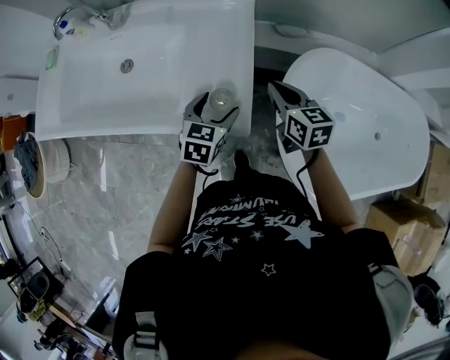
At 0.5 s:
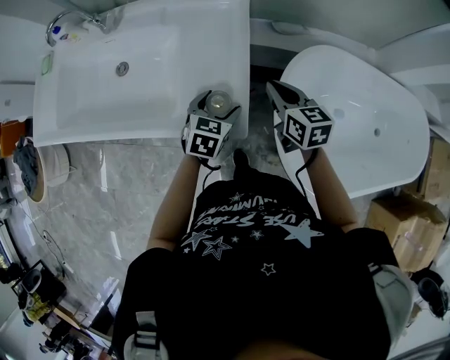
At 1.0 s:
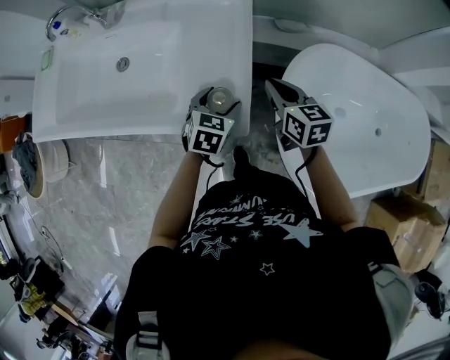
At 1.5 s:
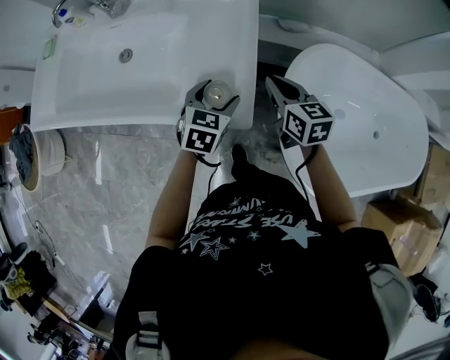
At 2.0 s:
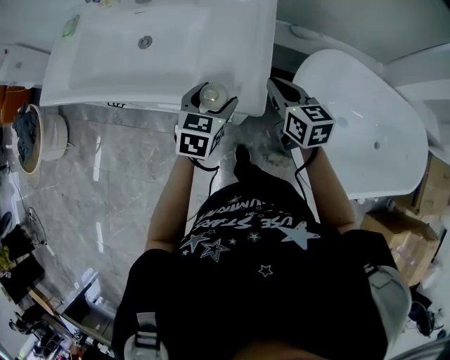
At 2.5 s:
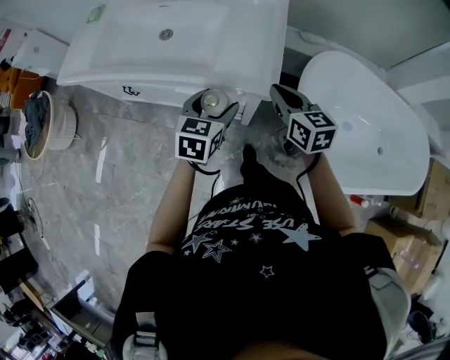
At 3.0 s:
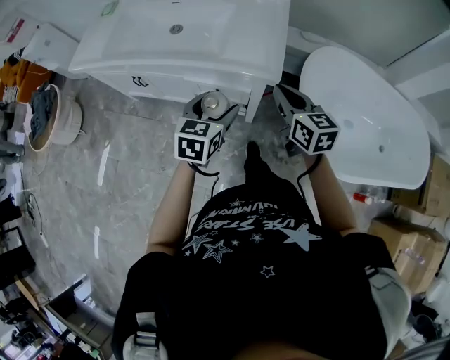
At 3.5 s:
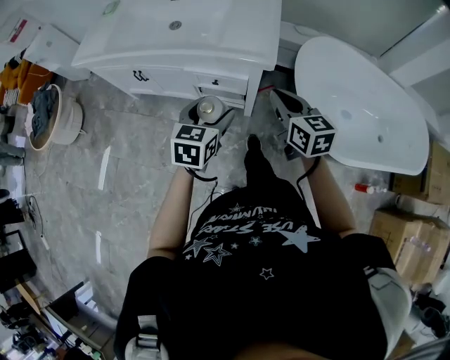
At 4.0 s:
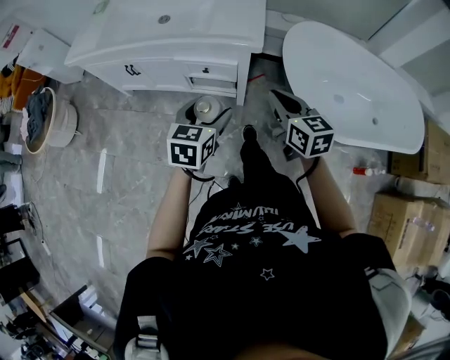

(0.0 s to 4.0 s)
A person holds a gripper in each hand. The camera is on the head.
0.0 s - 2.0 s: Both grippers travel together backward and to the left, some 10 cm.
2.0 s - 4.0 s: The two grippers go approximately 35 cm backward.

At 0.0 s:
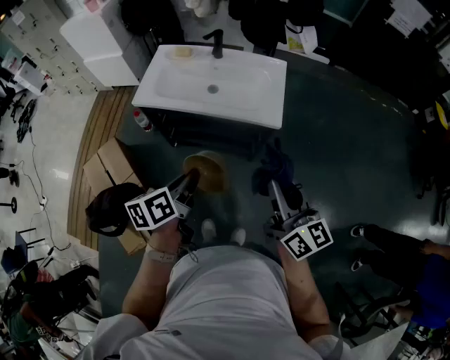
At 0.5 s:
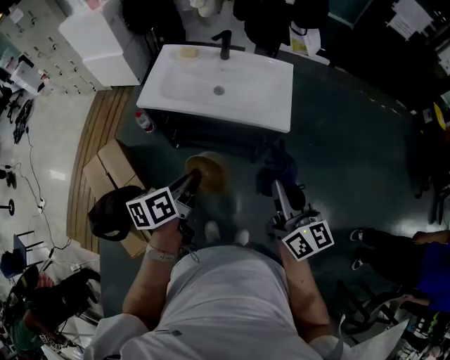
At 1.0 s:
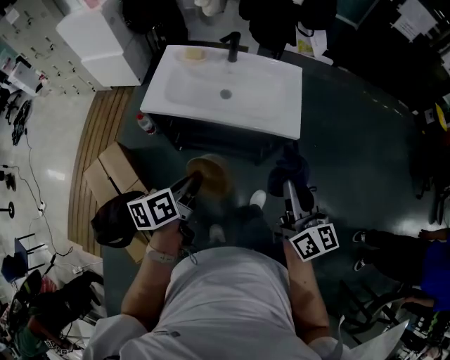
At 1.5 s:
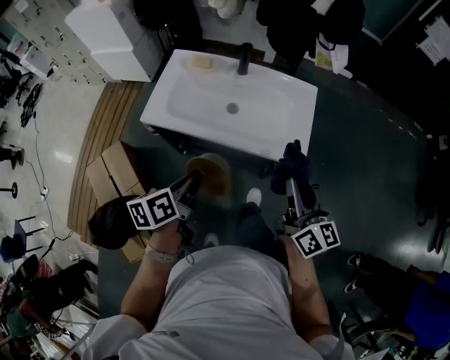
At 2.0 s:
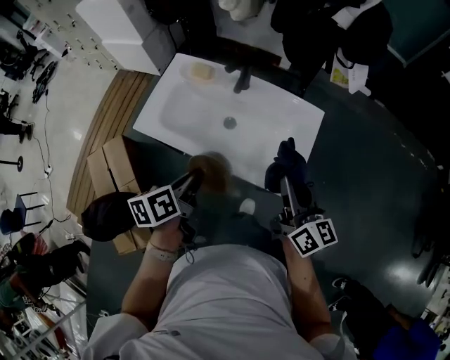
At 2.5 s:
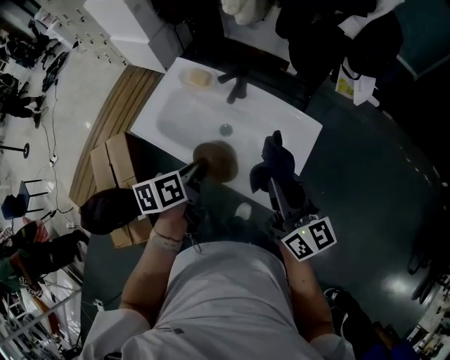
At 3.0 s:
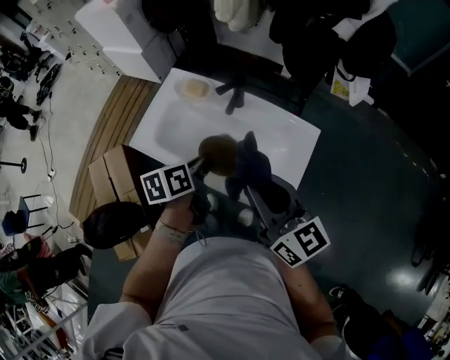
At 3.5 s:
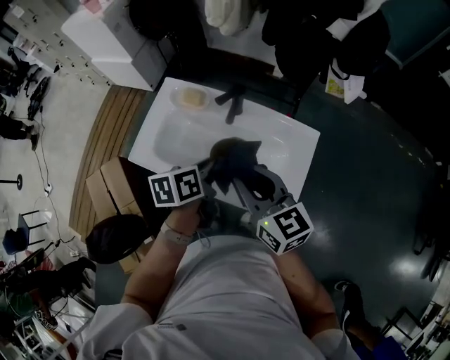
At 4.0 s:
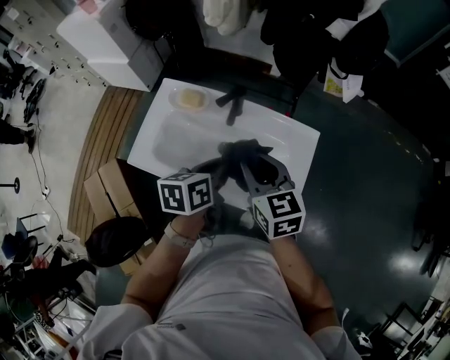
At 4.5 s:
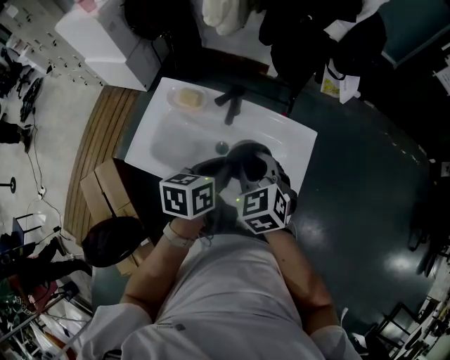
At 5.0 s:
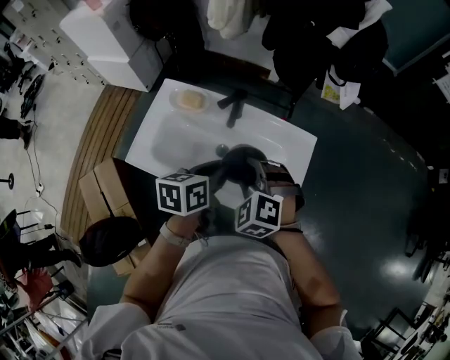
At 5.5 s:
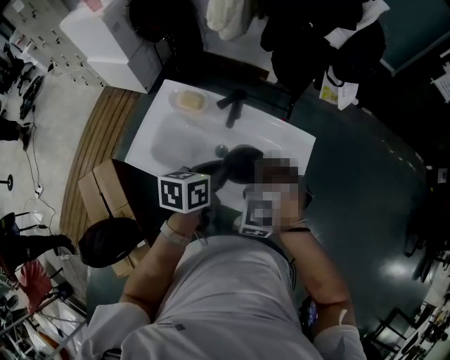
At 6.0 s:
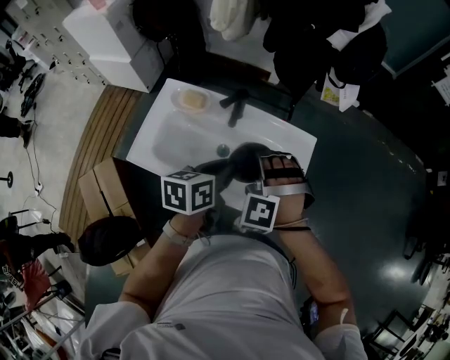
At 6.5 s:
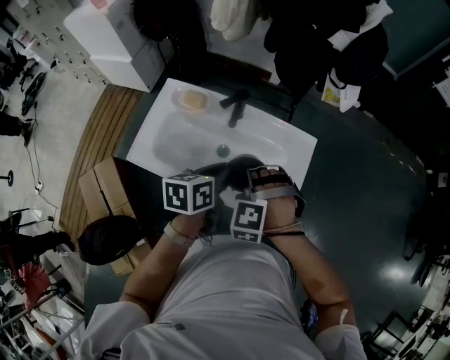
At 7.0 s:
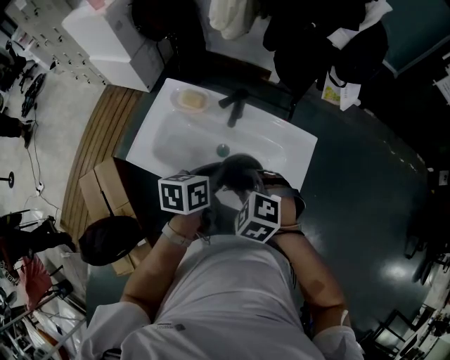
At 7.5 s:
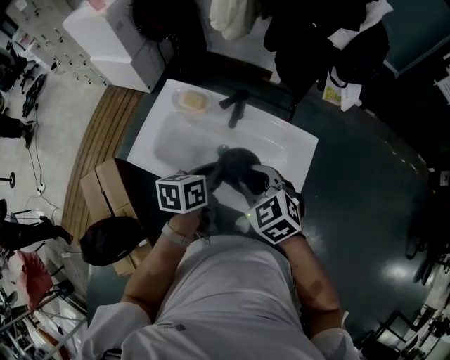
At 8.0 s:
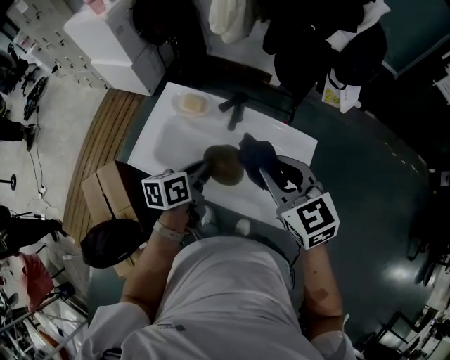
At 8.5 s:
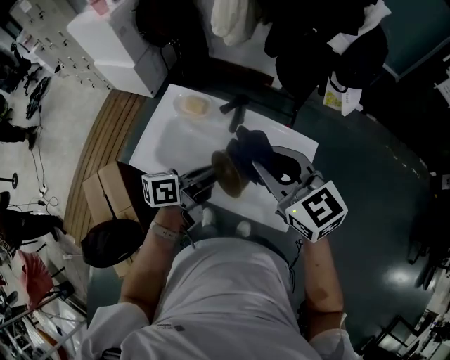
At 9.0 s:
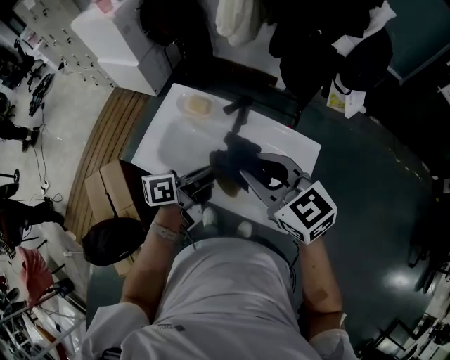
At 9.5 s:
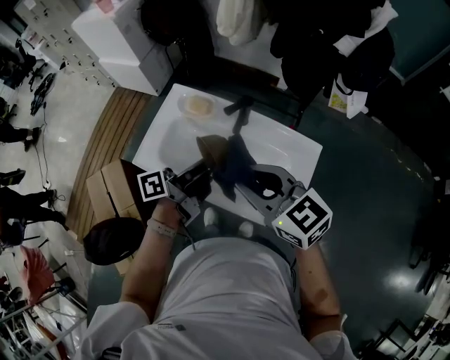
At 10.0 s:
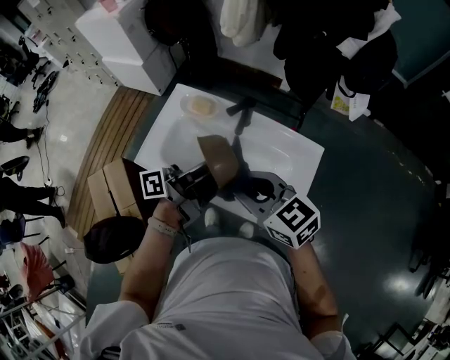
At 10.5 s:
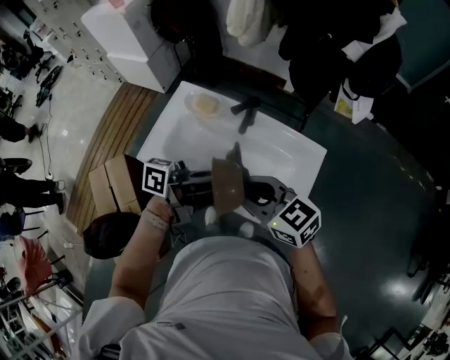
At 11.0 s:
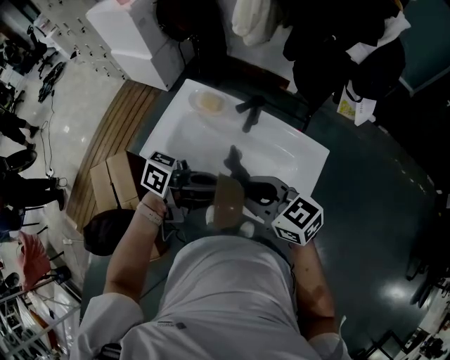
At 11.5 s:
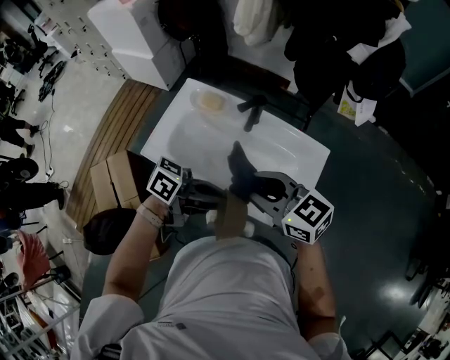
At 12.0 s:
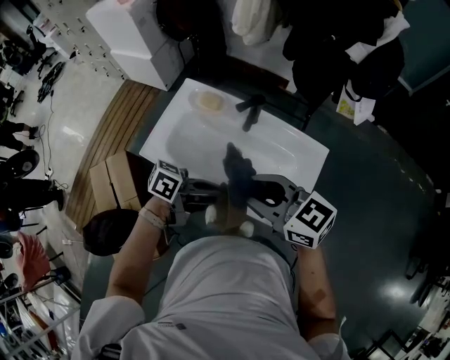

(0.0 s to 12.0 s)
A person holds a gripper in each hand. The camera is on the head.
0.0 s - 2.0 s: The two grippers go roughly 30 cm forward.
2.0 s - 4.0 s: The right gripper is displaced forward and to the left by approximately 15 cm, and swivels some 30 degrees. The left gripper shifts some 15 cm forward and to the right.
4.0 s - 6.0 s: The right gripper twists some 80 degrees counterclockwise, seen from behind.
6.0 s - 8.0 s: The right gripper moves upward, approximately 10 cm, and rotates around the line of its fingers by approximately 60 degrees, clockwise from behind. Meanwhile the left gripper is displaced to the left by some 5 cm.
8.0 s - 10.0 s: The left gripper travels upward by roughly 10 cm, and angles its fingers upward, by approximately 40 degrees. The right gripper travels to the left by roughly 5 cm, and turns by roughly 20 degrees.
10.0 s - 12.0 s: The left gripper changes place by roughly 10 cm, and changes its angle by roughly 40 degrees.

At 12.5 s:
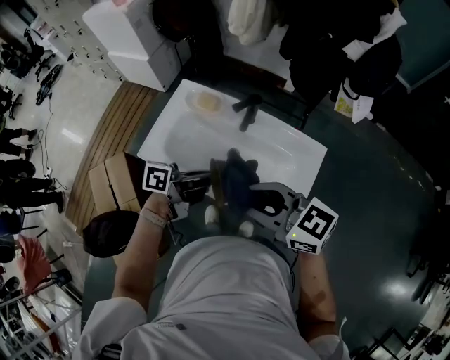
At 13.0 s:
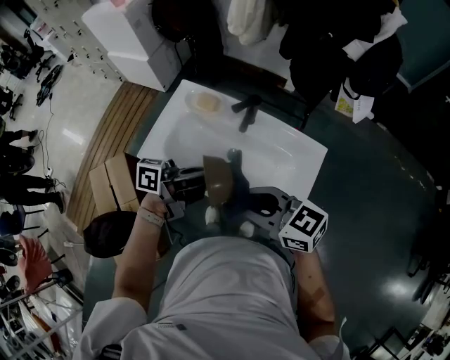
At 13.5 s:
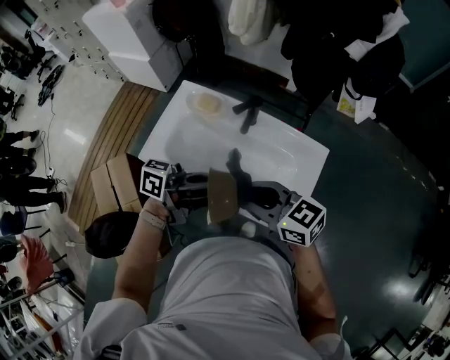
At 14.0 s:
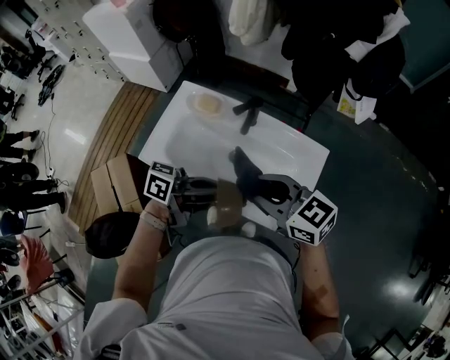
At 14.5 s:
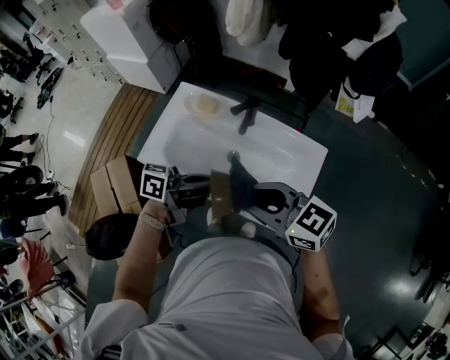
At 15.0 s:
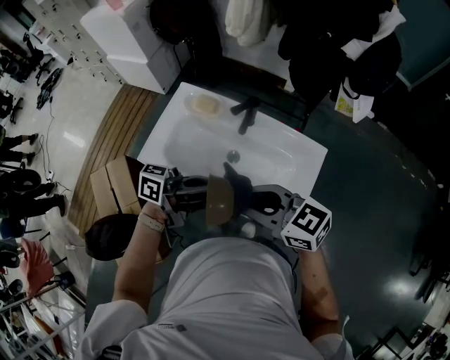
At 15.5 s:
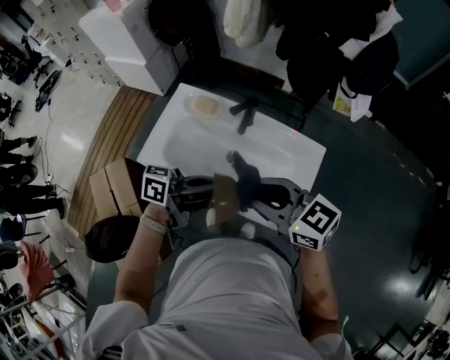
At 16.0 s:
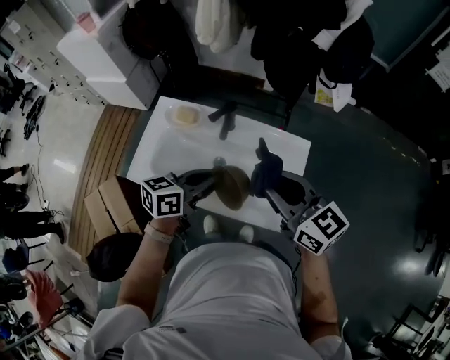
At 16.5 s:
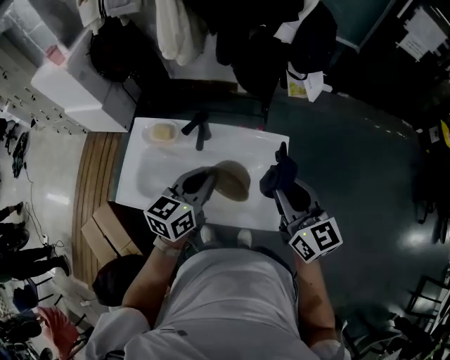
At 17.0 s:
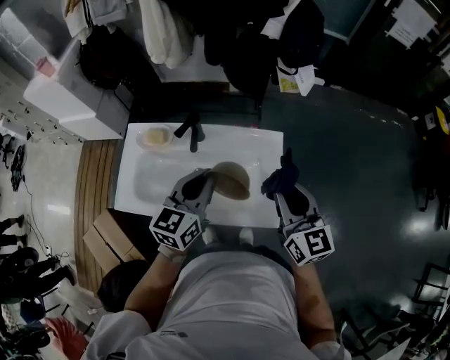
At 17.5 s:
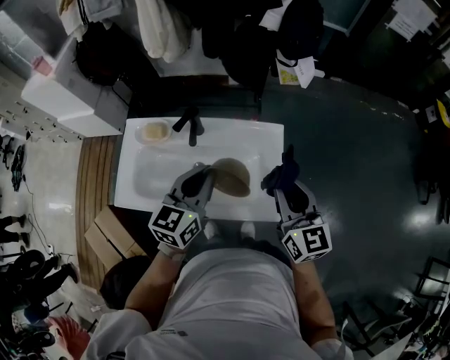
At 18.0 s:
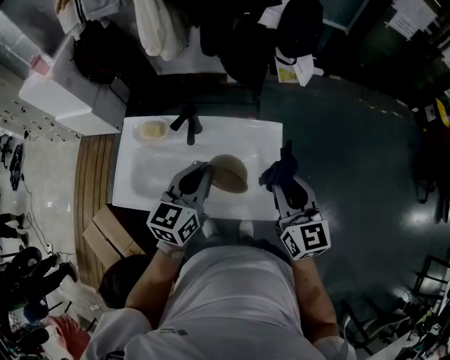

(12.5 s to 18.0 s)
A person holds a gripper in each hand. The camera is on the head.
14.5 s - 16.0 s: The right gripper changes place by roughly 10 cm, and turns by about 30 degrees; the left gripper changes place by approximately 5 cm, and turns by approximately 30 degrees.
16.0 s - 18.0 s: The left gripper changes place by about 5 cm, and turns by about 30 degrees. Meanwhile the right gripper travels to the right by roughly 10 cm, and changes its angle by roughly 40 degrees.

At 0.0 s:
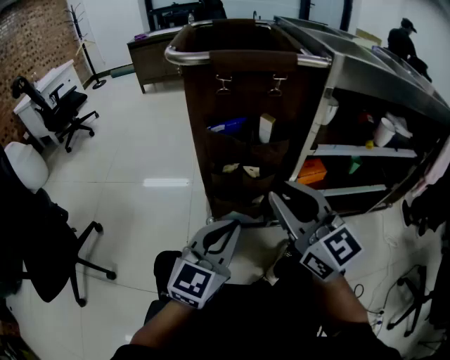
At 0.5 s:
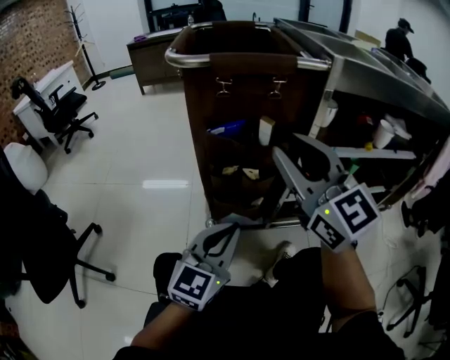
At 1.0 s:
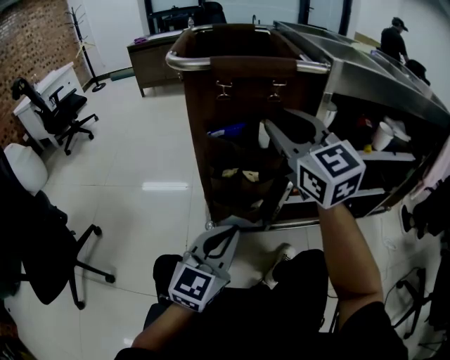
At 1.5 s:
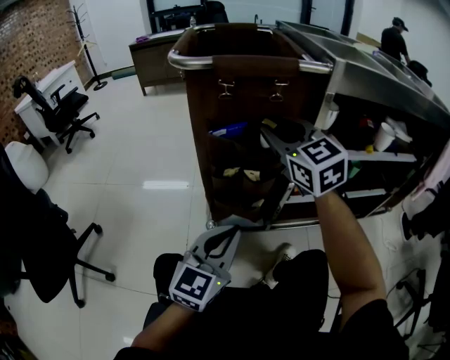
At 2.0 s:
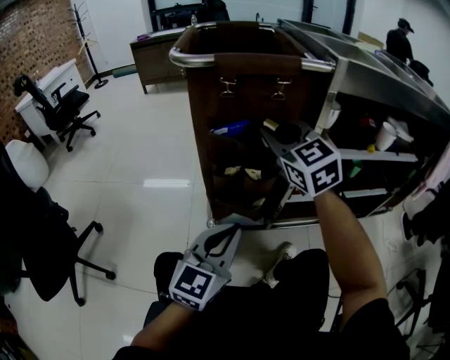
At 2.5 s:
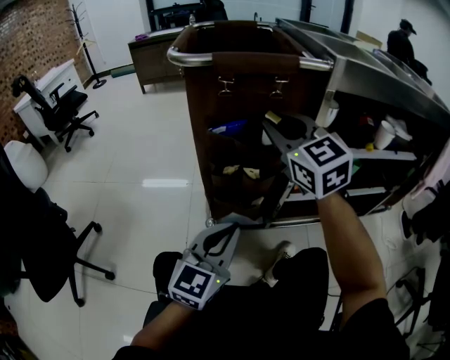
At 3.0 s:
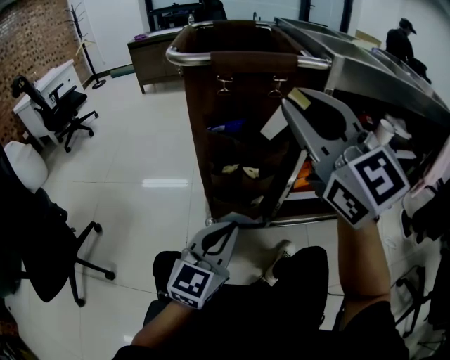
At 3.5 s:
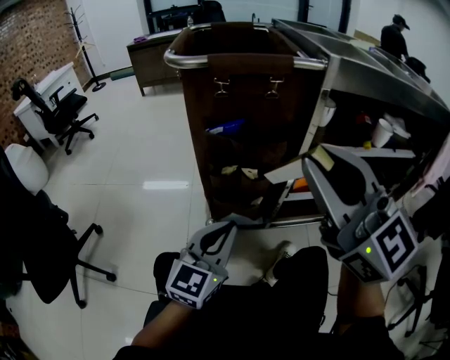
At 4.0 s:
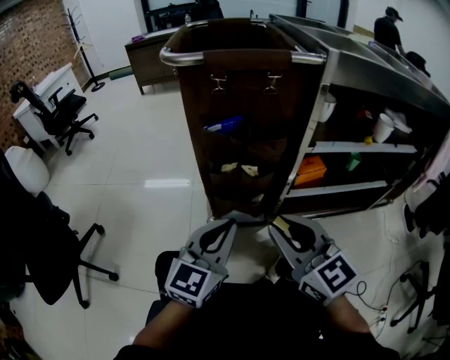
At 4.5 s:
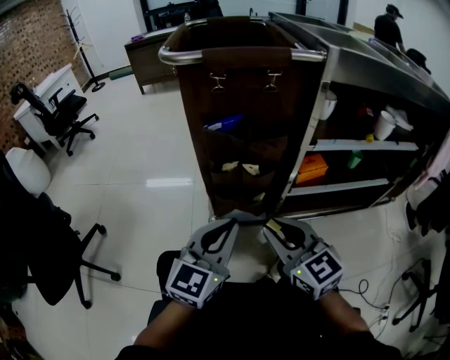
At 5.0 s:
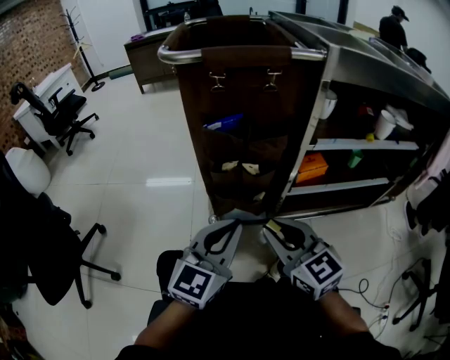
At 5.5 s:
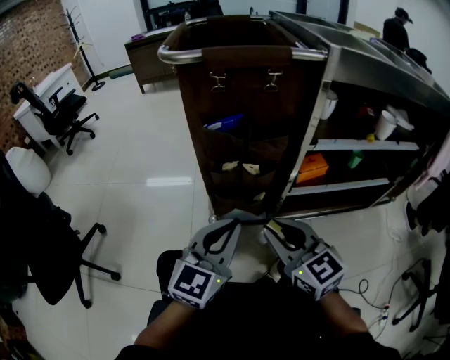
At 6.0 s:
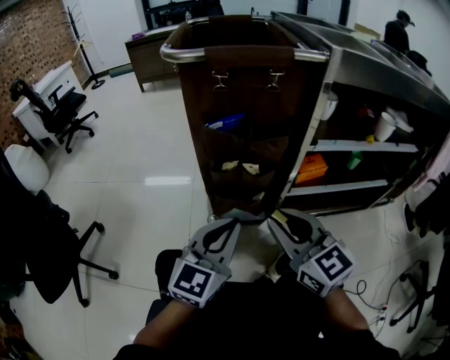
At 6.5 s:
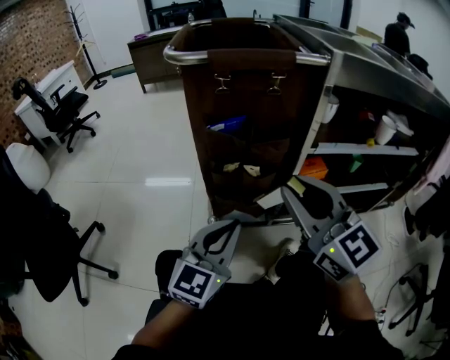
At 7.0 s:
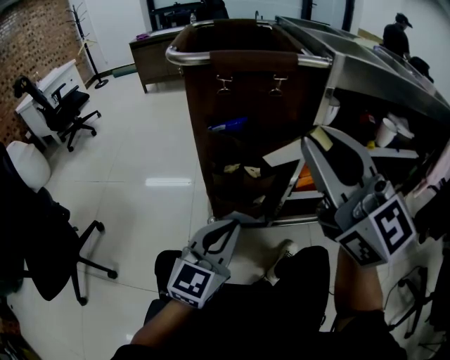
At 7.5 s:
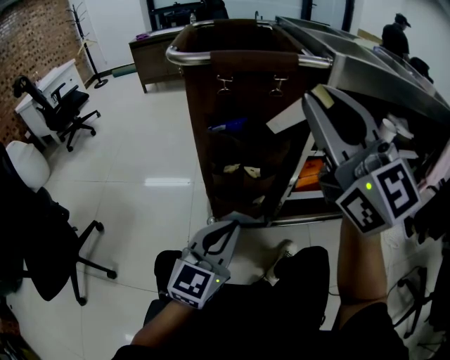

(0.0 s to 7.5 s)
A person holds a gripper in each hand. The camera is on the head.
0.0 s - 2.0 s: The right gripper moves forward, about 15 cm, and rotates some 20 degrees.
2.0 s - 4.0 s: The right gripper moves backward, about 20 cm.
4.0 s - 5.5 s: The right gripper shifts roughly 5 cm downward.
5.5 s - 7.5 s: The right gripper goes some 30 cm upward, and rotates some 30 degrees.
